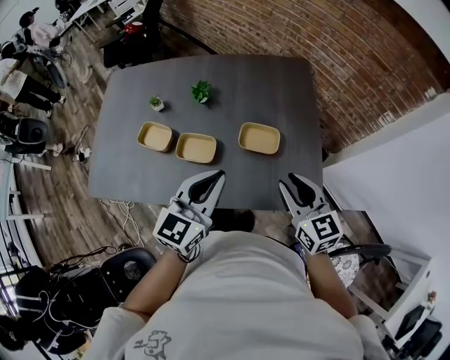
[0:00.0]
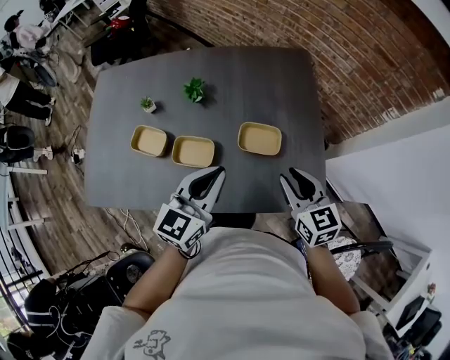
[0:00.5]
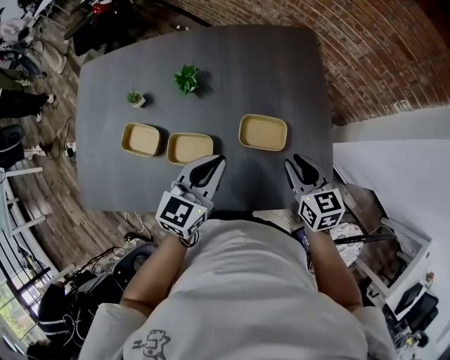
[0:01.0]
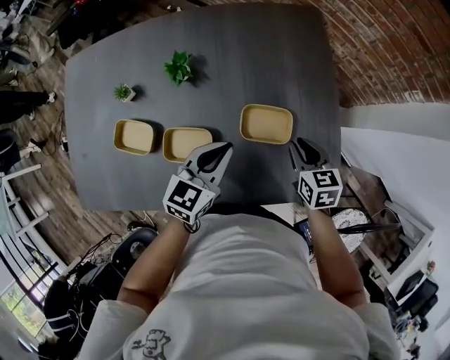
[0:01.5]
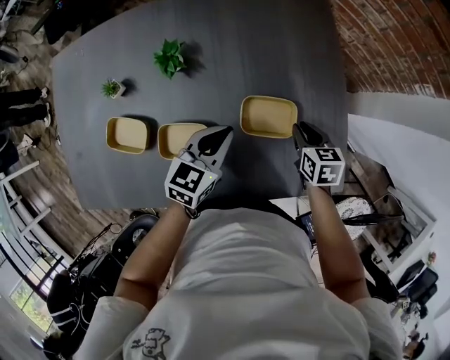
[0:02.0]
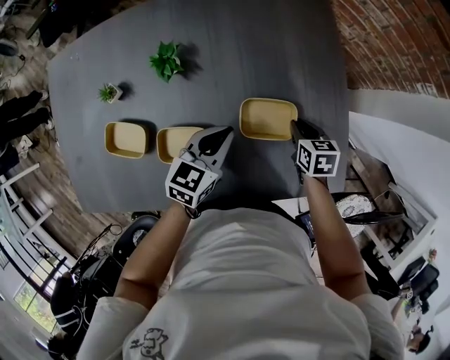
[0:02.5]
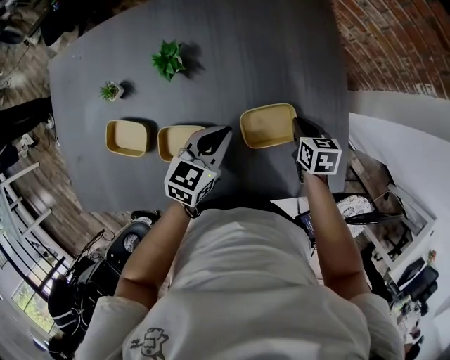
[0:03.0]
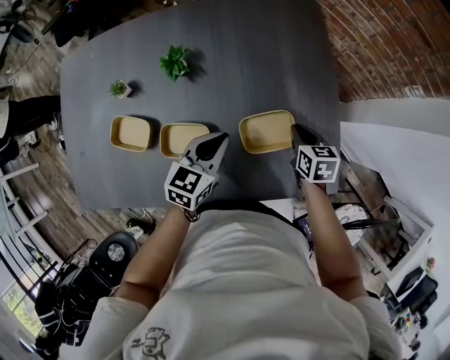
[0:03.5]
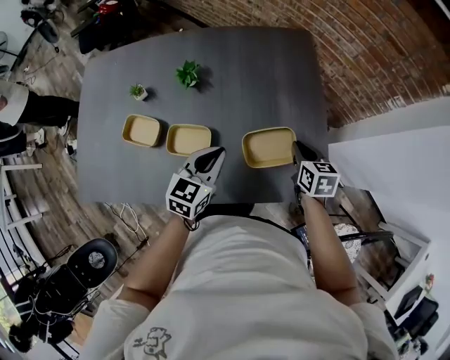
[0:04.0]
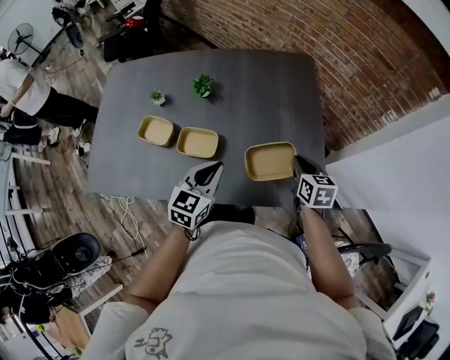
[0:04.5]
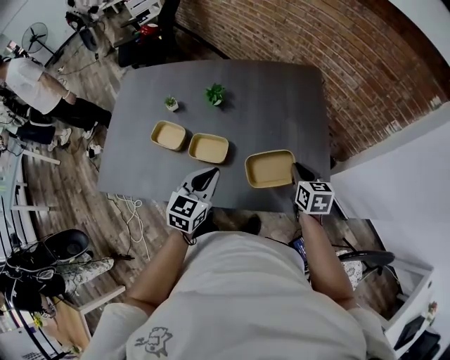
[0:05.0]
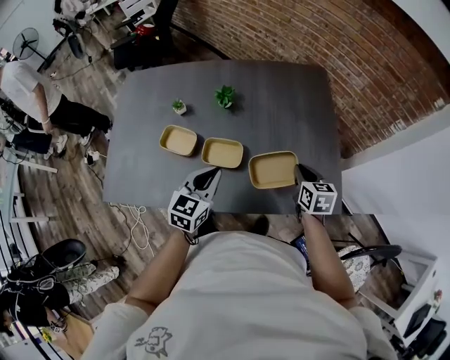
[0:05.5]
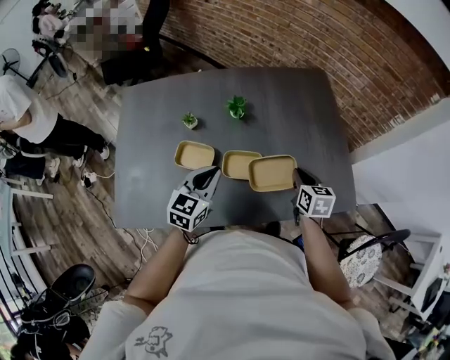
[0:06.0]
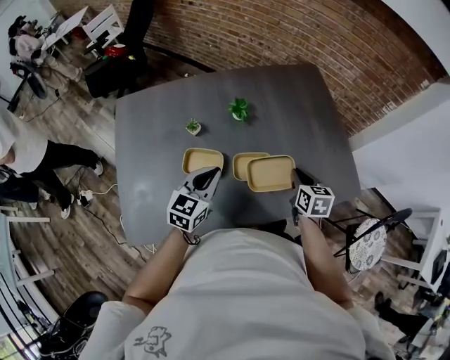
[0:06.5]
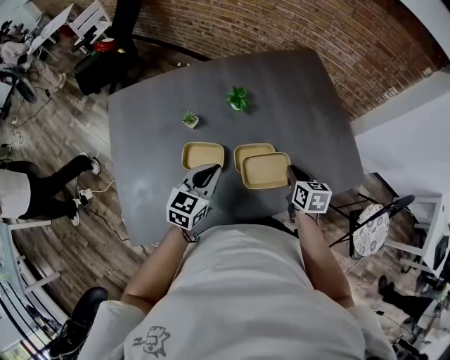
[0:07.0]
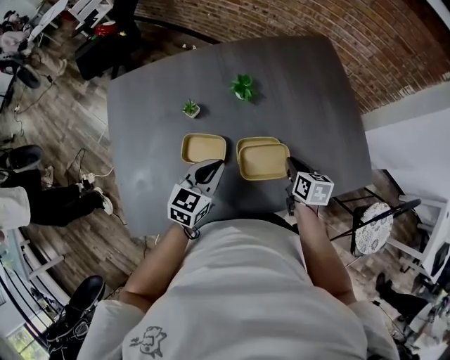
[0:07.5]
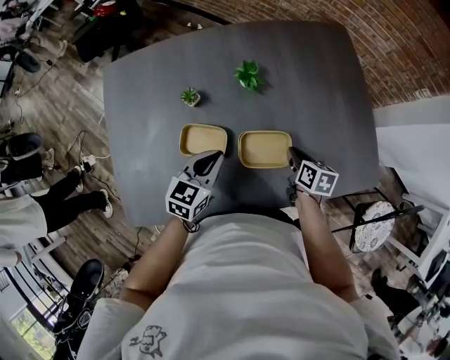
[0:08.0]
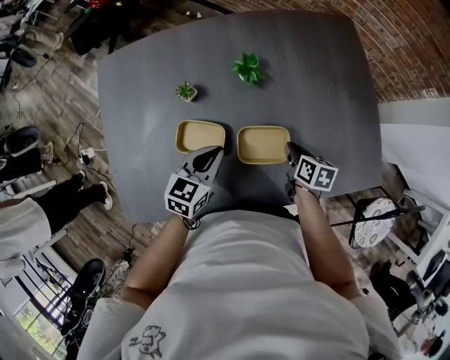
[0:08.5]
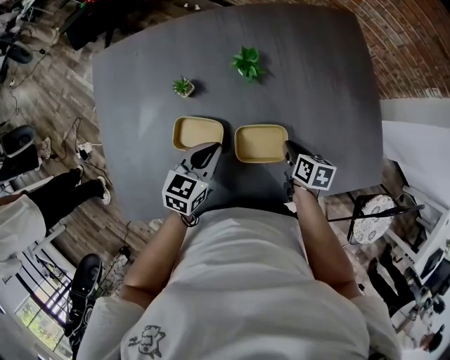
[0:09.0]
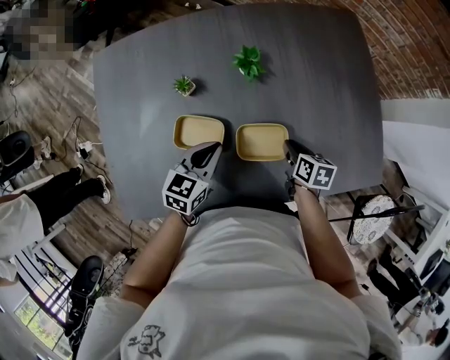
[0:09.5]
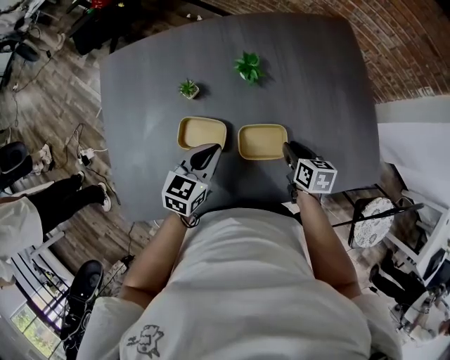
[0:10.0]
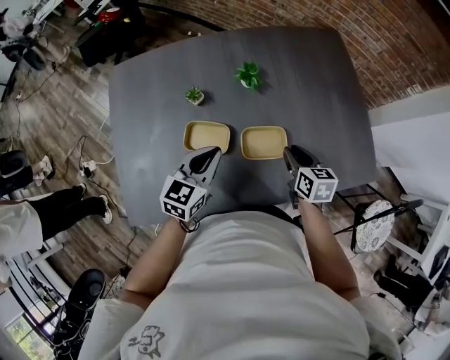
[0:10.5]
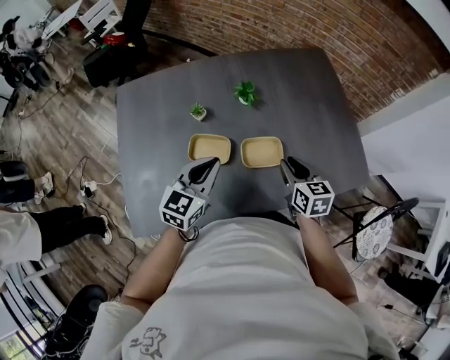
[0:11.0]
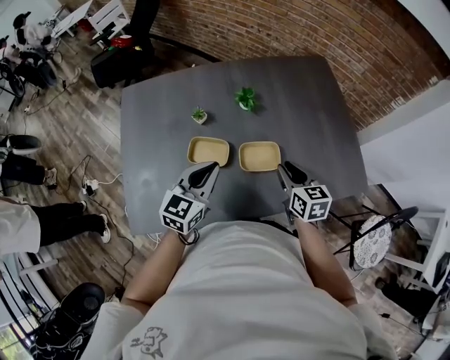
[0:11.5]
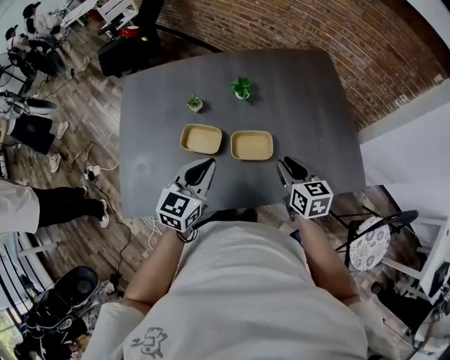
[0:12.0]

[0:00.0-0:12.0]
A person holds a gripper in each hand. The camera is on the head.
0:00.0 to 0:02.0: The two grippers go about 30 cm downward and forward. The right gripper points its fingers about 30 degrees further downward. Meanwhile the left gripper swivels some 30 degrees.
0:02.0 to 0:04.0: The left gripper heads backward and upward, covering approximately 10 cm; the right gripper travels upward by roughly 10 cm.
0:04.0 to 0:06.0: The two grippers go approximately 20 cm to the left.
0:06.0 to 0:08.0: Both grippers travel together downward and to the left, roughly 10 cm. The right gripper changes its angle by roughly 20 degrees.
0:08.0 to 0:10.0: The grippers stay close to where they were, moving slightly.
0:10.0 to 0:12.0: The two grippers go approximately 15 cm upward and backward. The right gripper changes its angle by about 20 degrees.

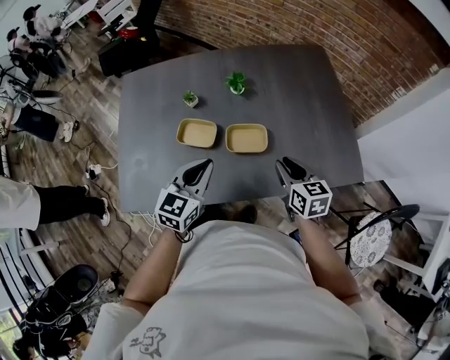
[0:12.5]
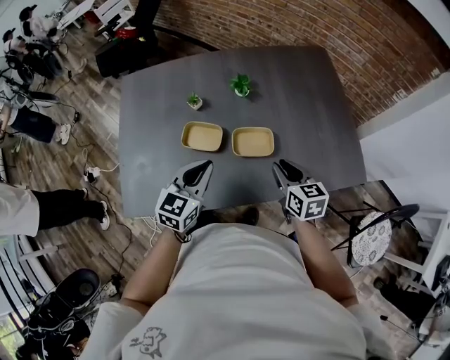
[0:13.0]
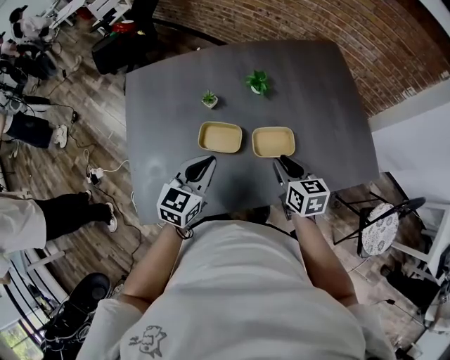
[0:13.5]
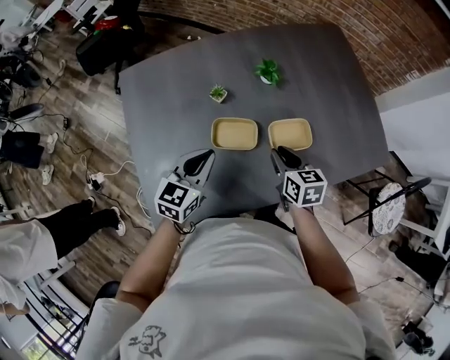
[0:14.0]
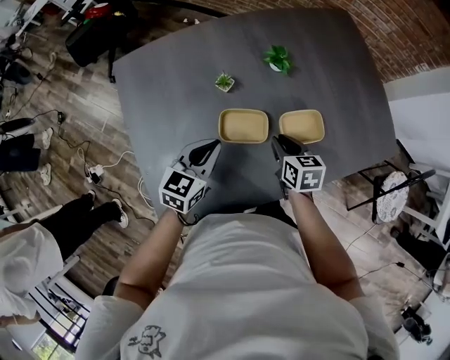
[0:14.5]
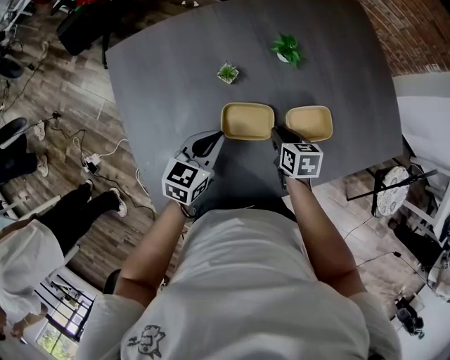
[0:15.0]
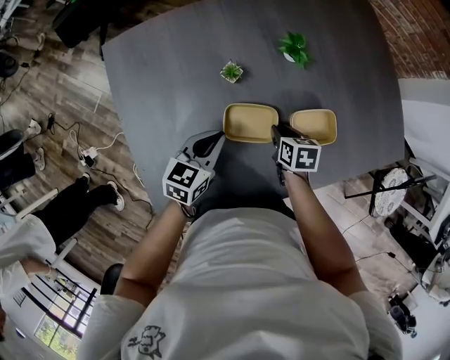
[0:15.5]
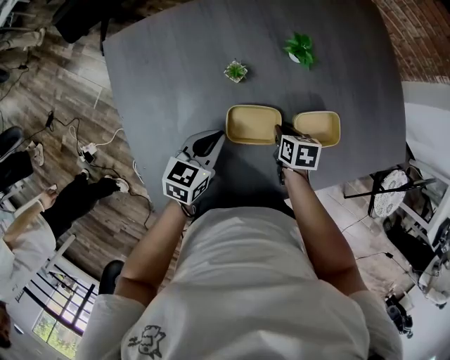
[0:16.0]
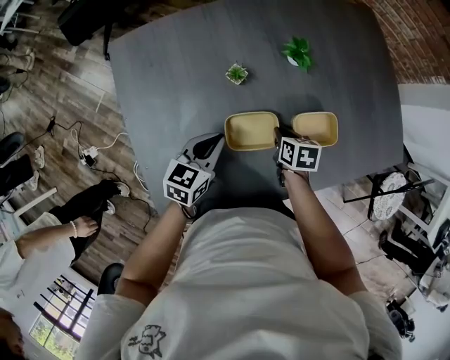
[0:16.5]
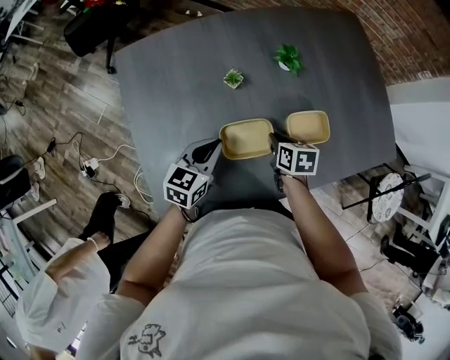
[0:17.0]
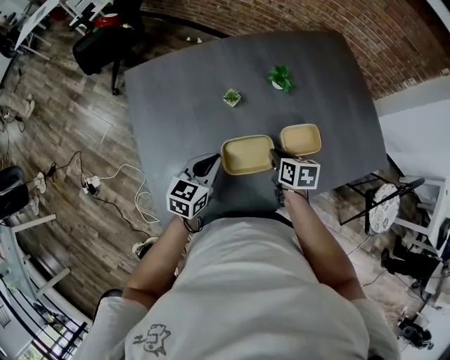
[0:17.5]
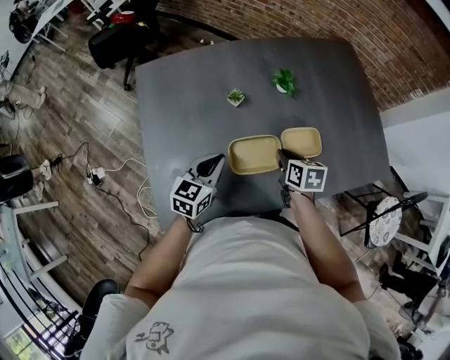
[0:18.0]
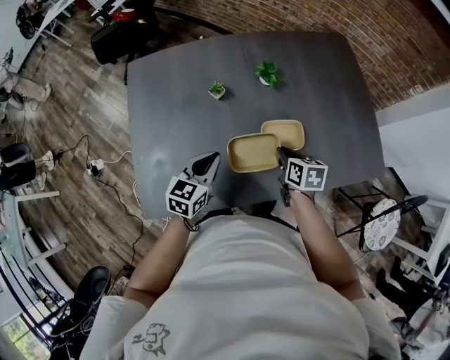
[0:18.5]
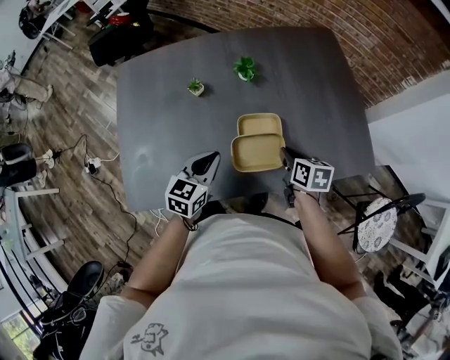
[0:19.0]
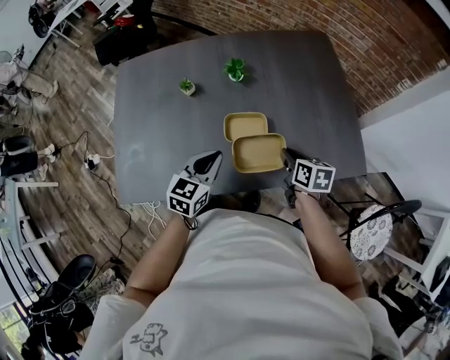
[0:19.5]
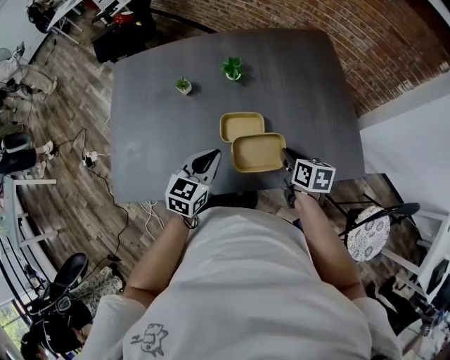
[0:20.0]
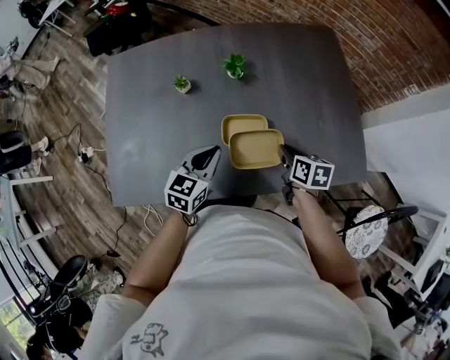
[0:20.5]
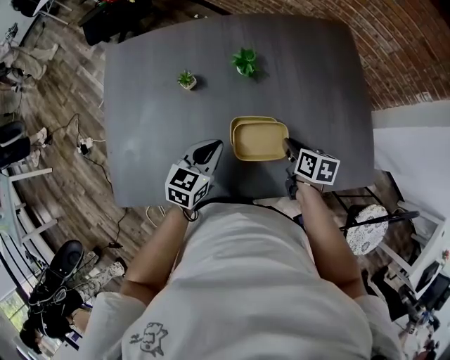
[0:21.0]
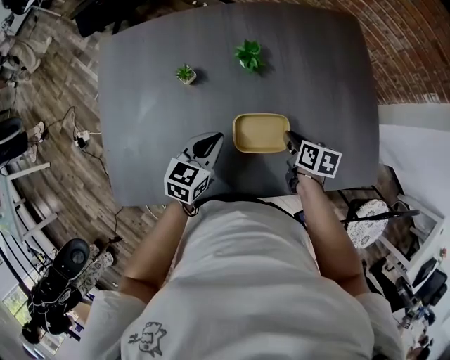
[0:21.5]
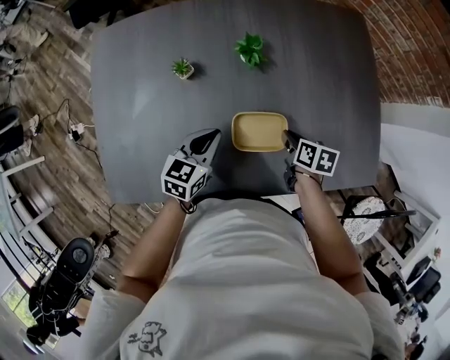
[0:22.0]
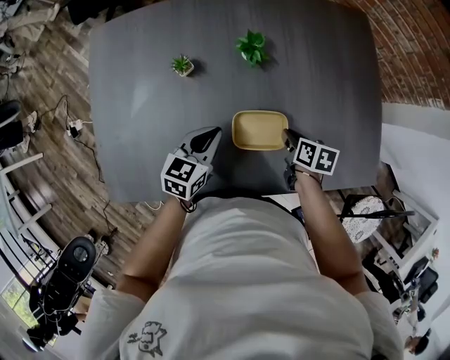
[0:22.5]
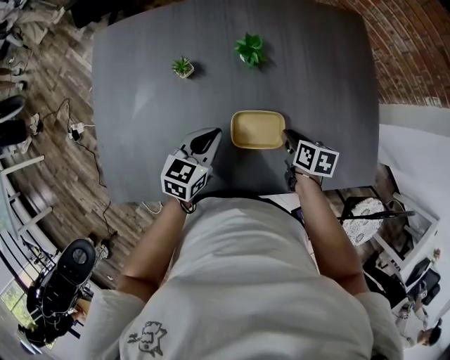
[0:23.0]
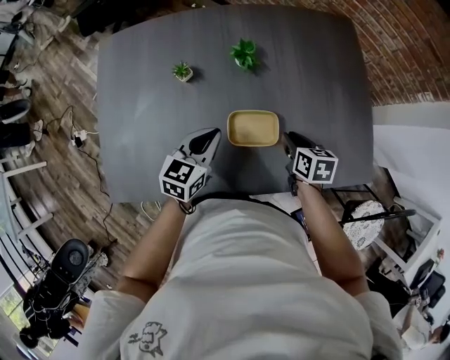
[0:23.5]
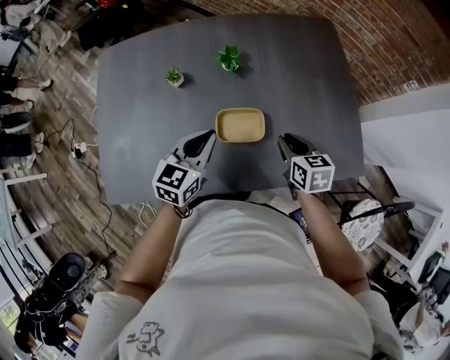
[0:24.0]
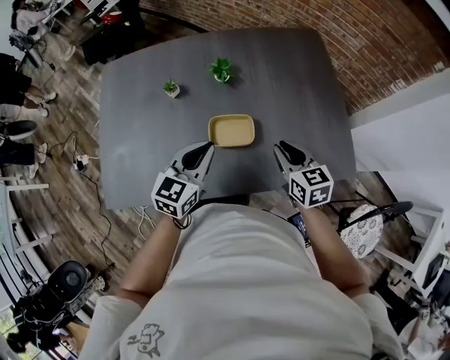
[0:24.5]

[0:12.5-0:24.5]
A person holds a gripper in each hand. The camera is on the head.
0:12.5 to 0:14.5: The right gripper shifts about 25 cm to the left and downward, and swivels roughly 20 degrees. Meanwhile the left gripper is displaced to the left, forward and downward by about 25 cm.
0:14.5 to 0:16.5: Both grippers travel together downward, about 10 cm.
0:16.5 to 0:18.5: The left gripper travels to the right, backward and upward by some 15 cm. The right gripper is displaced upward and to the right by about 15 cm.
0:18.5 to 0:20.5: Both grippers travel together to the right, approximately 15 cm.
0:20.5 to 0:22.5: The left gripper travels forward and downward by approximately 10 cm; the right gripper is displaced downward and forward by approximately 10 cm.
0:22.5 to 0:24.5: The right gripper goes about 20 cm upward and backward, and swivels about 40 degrees, while the left gripper goes about 15 cm upward, backward and to the right.

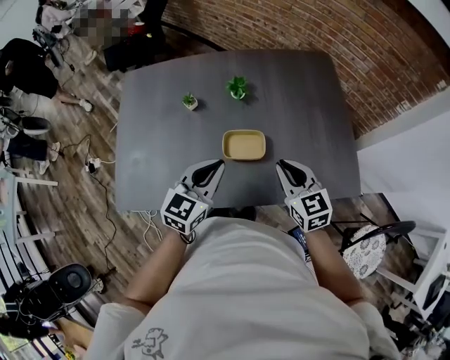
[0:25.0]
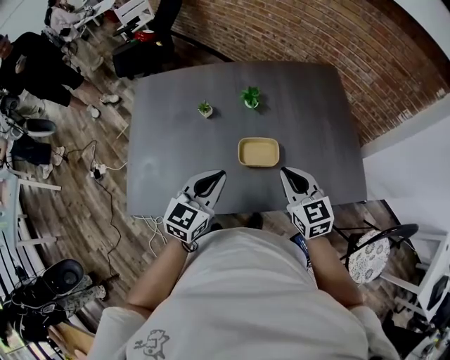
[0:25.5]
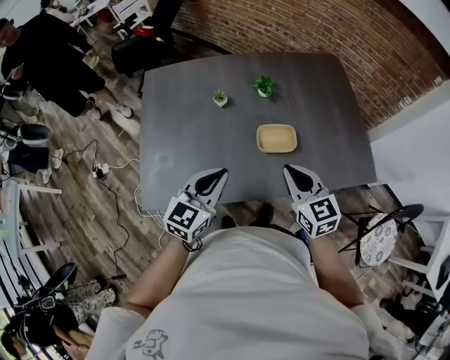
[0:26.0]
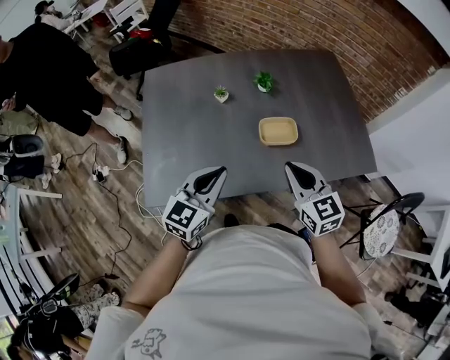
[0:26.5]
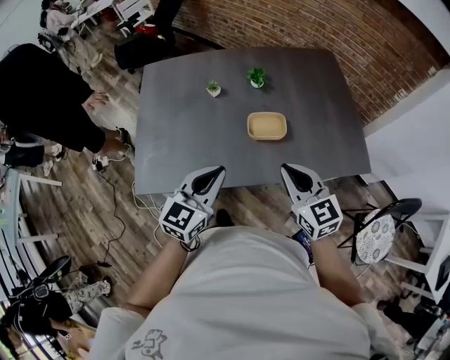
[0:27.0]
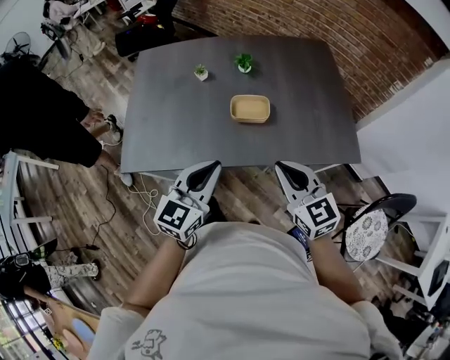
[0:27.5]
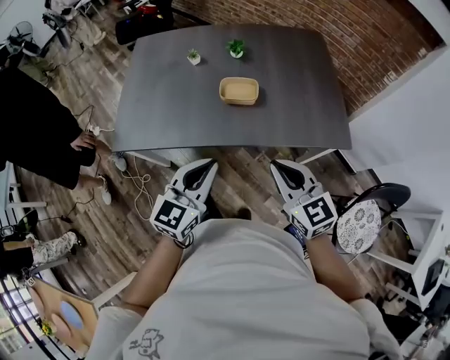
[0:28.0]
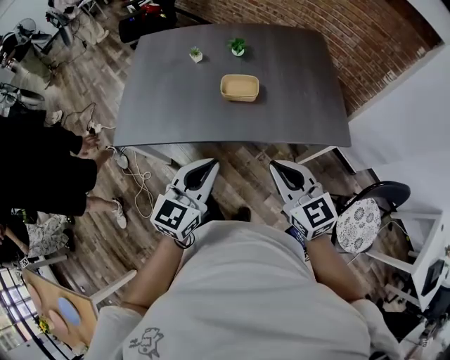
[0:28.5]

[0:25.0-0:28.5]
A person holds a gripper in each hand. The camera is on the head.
0:25.0 to 0:27.0: The right gripper shifts roughly 20 cm backward, to the left and upward. The left gripper goes about 15 cm backward and to the left.
0:27.0 to 0:28.5: The grippers both shift backward and to the right by roughly 20 cm.
